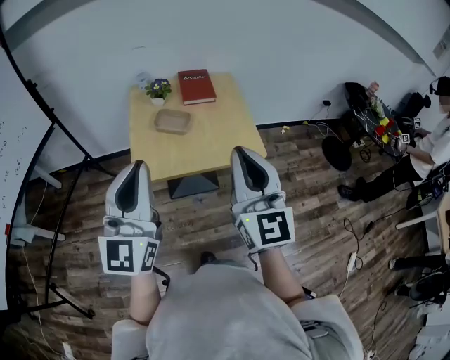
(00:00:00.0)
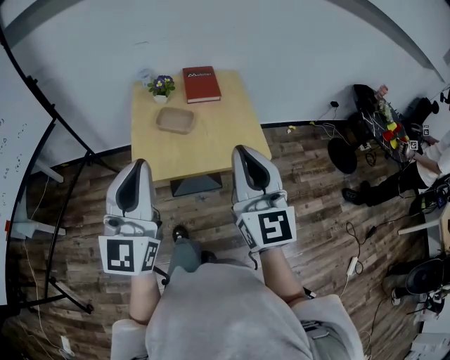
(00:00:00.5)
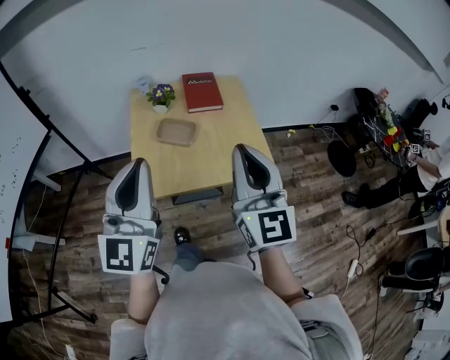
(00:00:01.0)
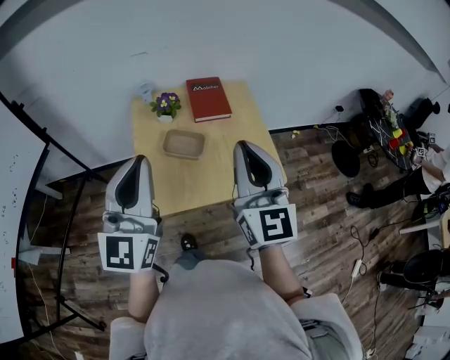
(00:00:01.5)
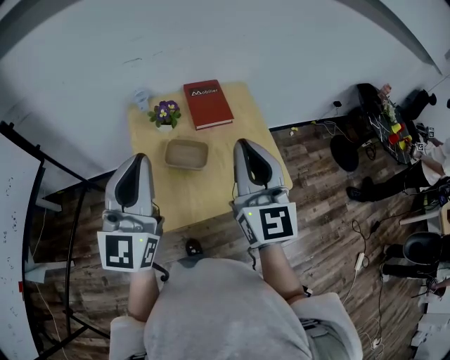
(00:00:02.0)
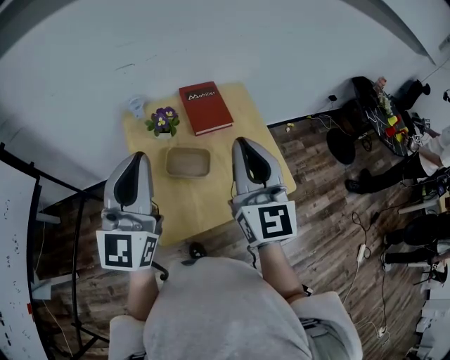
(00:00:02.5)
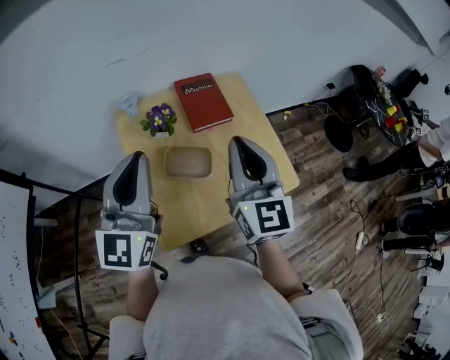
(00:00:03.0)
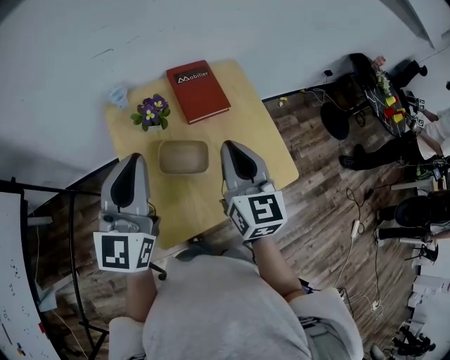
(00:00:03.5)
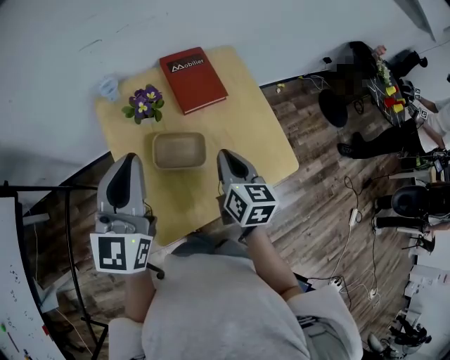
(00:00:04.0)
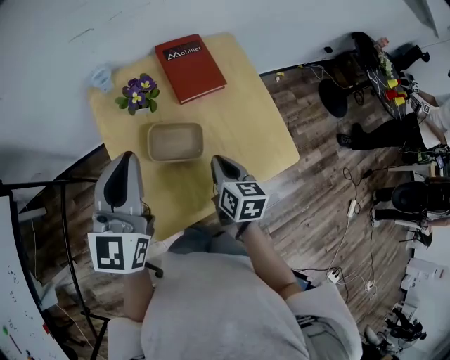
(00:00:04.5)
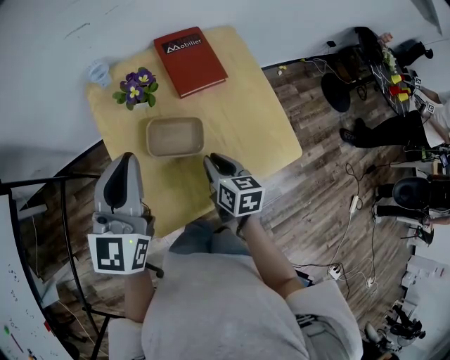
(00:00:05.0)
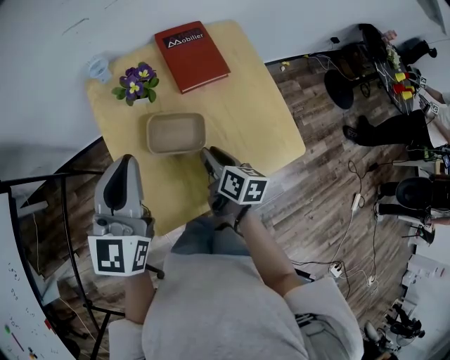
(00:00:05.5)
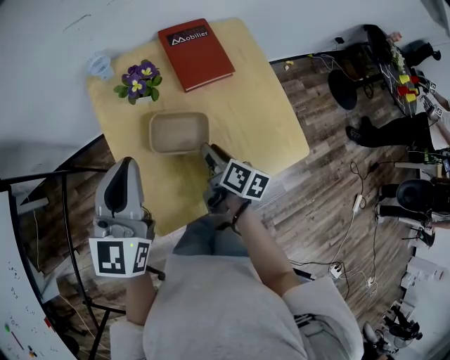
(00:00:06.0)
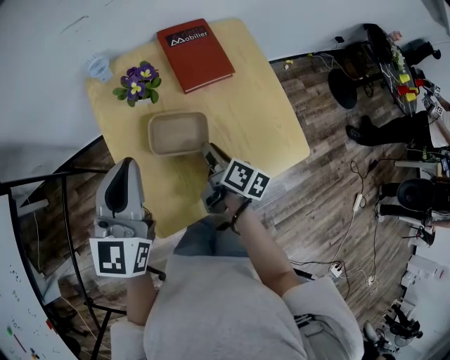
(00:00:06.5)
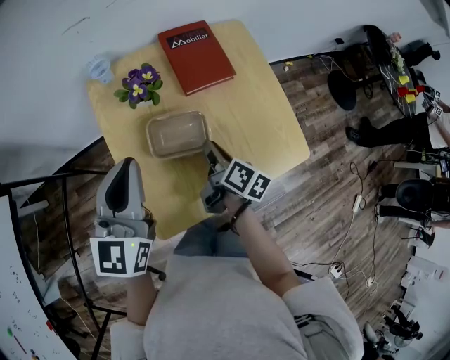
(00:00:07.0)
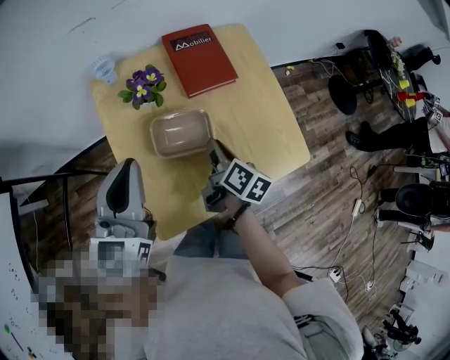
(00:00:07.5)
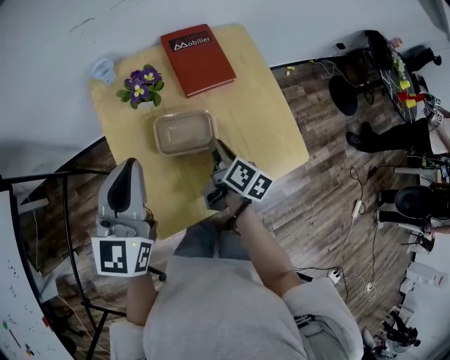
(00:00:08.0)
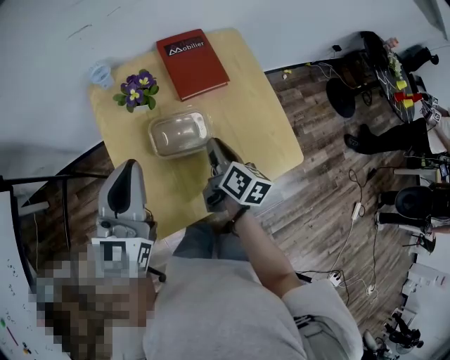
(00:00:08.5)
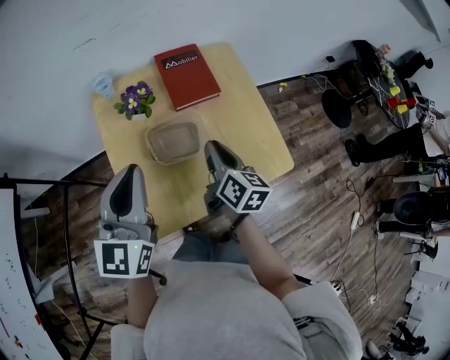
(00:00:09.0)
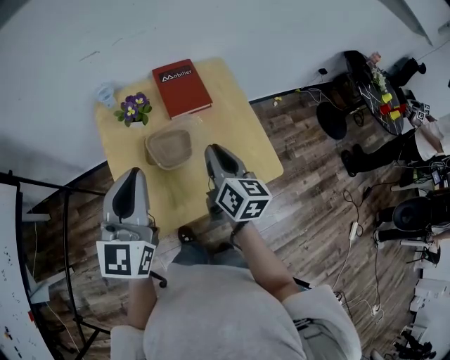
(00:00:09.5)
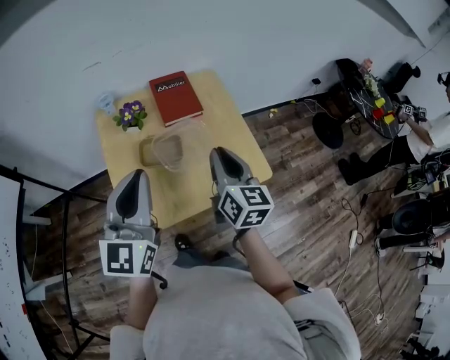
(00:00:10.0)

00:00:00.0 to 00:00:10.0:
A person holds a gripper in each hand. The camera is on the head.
00:00:00.0 to 00:00:02.0: The grippers both shift forward by some 25 cm.
00:00:02.0 to 00:00:04.0: The left gripper travels forward and downward by about 15 cm. Meanwhile the right gripper goes some 25 cm downward, and tips its fingers downward by some 30 degrees.
00:00:04.0 to 00:00:06.0: The right gripper shifts approximately 15 cm downward, turns by roughly 40 degrees, and opens. The left gripper heads downward, covering roughly 5 cm.
00:00:06.0 to 00:00:08.0: The right gripper closes.
00:00:08.0 to 00:00:10.0: The left gripper heads to the right, upward and backward, covering about 15 cm; the right gripper goes approximately 20 cm upward and to the right, and turns by about 40 degrees.

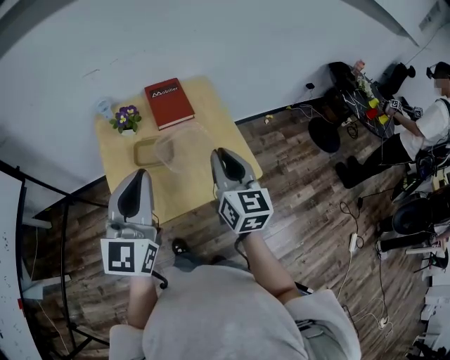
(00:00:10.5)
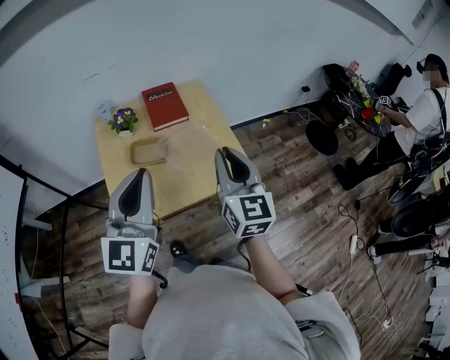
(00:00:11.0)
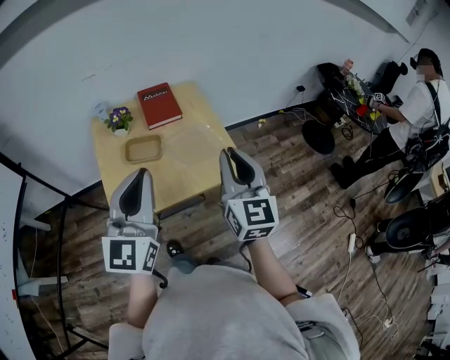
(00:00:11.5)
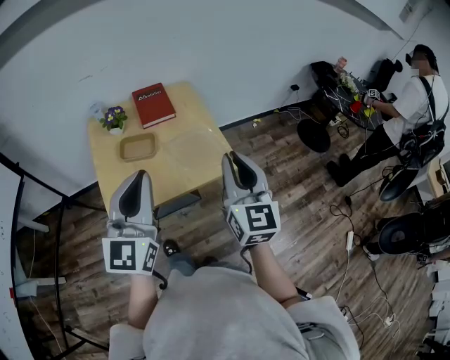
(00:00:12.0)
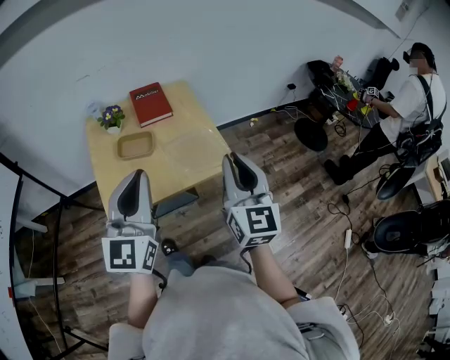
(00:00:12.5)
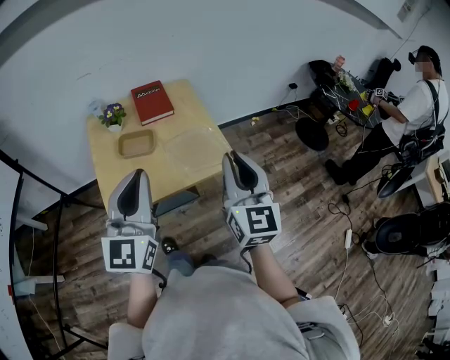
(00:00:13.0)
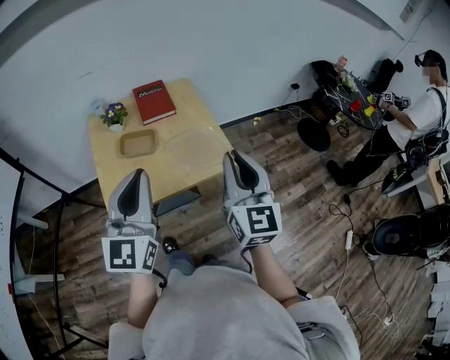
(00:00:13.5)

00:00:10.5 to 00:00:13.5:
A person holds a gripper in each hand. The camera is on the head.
00:00:10.5 to 00:00:12.0: The right gripper is displaced backward, to the right and upward by approximately 15 cm. The left gripper is displaced backward and to the right by roughly 10 cm.
00:00:12.0 to 00:00:13.5: The grippers make only small movements.

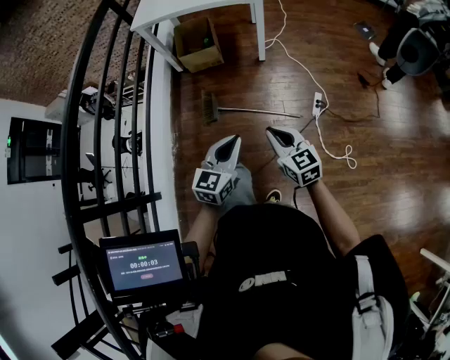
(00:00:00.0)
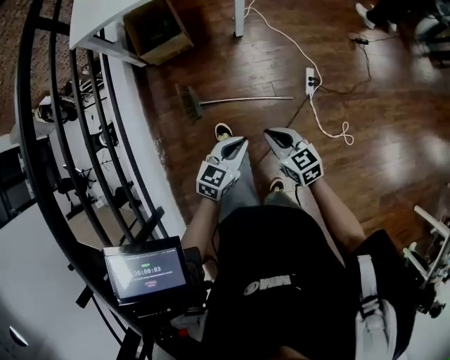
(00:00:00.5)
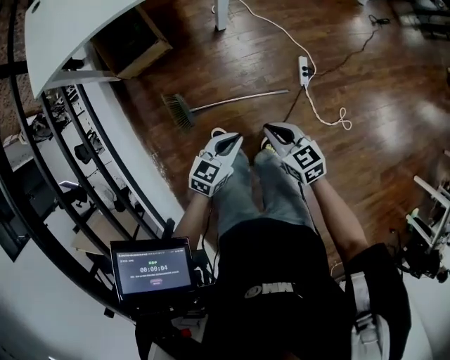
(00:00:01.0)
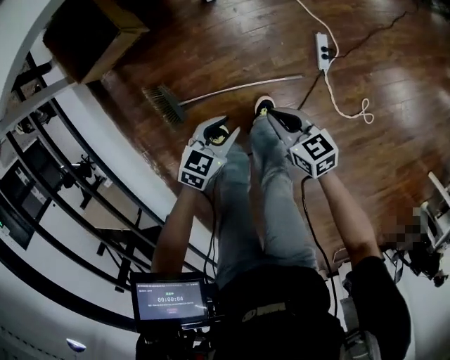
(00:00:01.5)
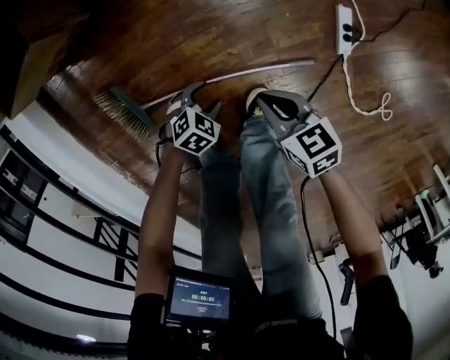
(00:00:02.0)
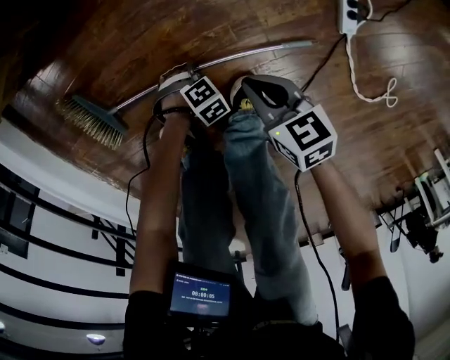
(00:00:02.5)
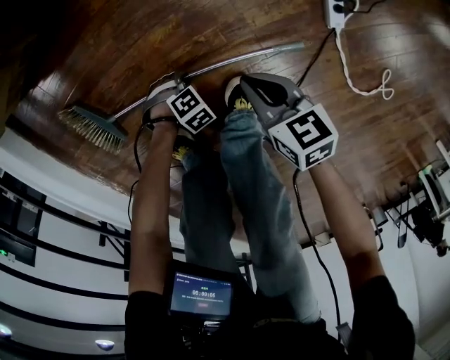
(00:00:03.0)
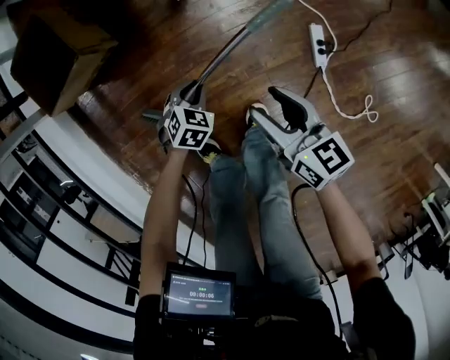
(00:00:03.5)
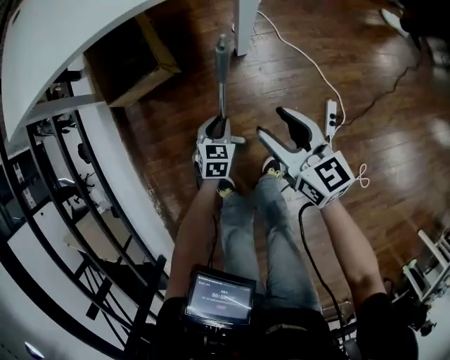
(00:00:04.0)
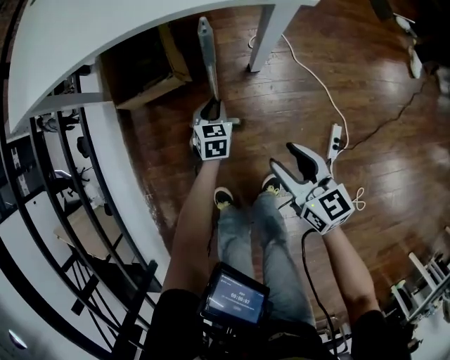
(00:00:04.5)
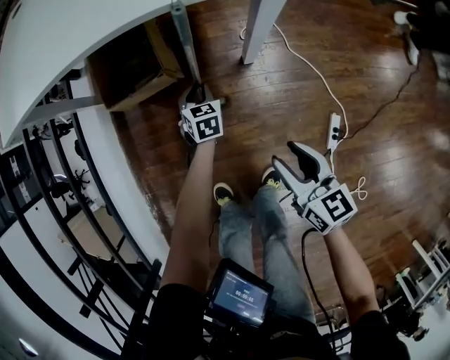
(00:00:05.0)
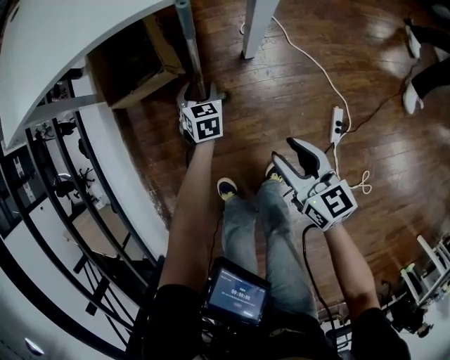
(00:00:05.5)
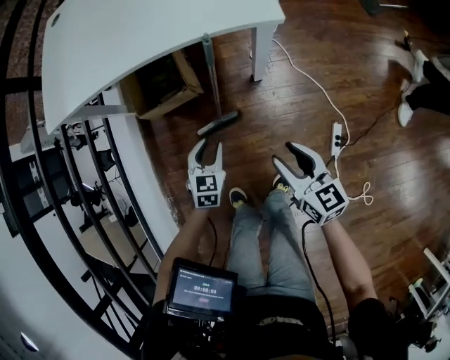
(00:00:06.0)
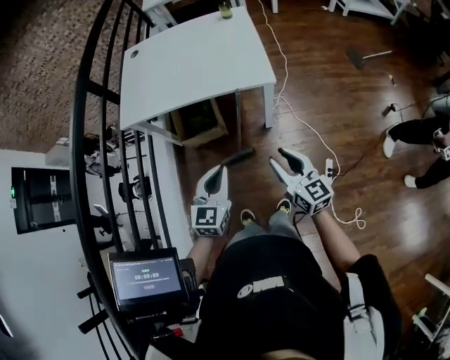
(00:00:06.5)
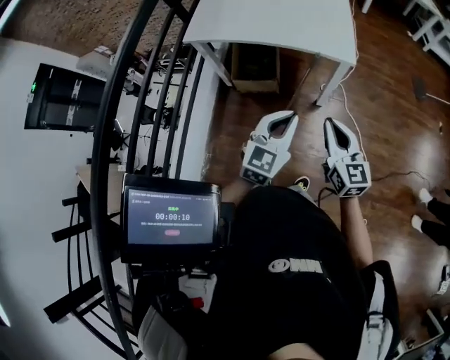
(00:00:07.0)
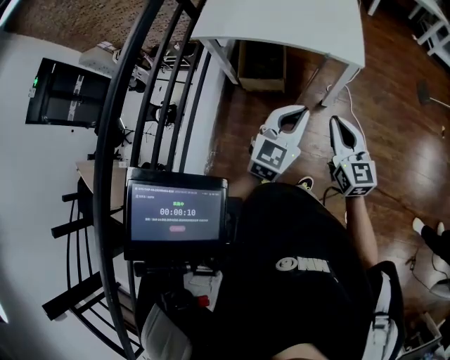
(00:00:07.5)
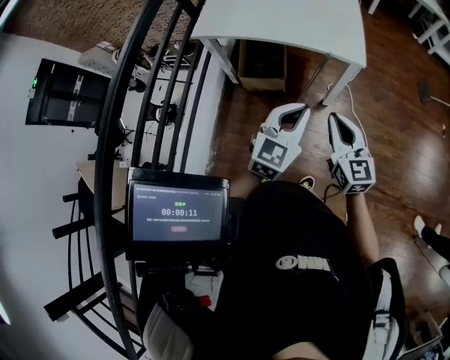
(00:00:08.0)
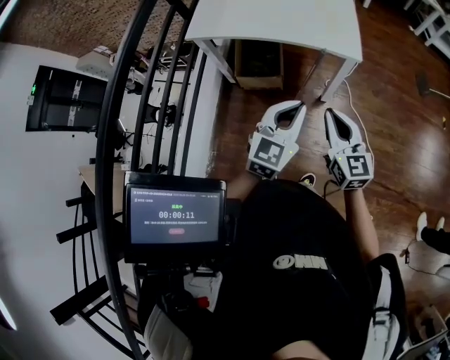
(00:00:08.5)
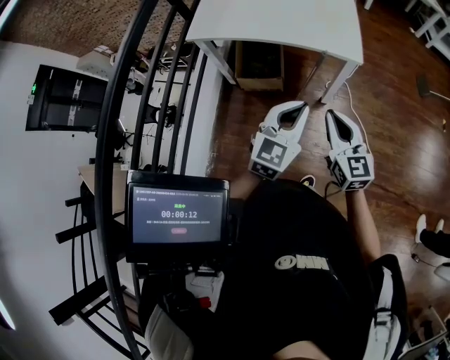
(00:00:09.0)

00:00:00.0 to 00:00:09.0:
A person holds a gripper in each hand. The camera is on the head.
00:00:00.0 to 00:00:02.0: The two grippers go about 60 cm downward. The right gripper changes its angle by roughly 40 degrees, while the left gripper points its fingers some 50 degrees further downward, and opens.
00:00:02.0 to 00:00:04.5: The left gripper ends up about 40 cm from where it was, swivels approximately 60 degrees, and closes up, while the right gripper goes some 30 cm upward, turns by approximately 20 degrees, and opens up.
00:00:04.5 to 00:00:07.0: The left gripper travels upward by about 30 cm, turns by approximately 30 degrees, and opens and closes again. Meanwhile the right gripper heads forward and upward, covering roughly 20 cm, changes its angle by approximately 20 degrees, and closes up.
00:00:07.0 to 00:00:09.0: The grippers move only a little.

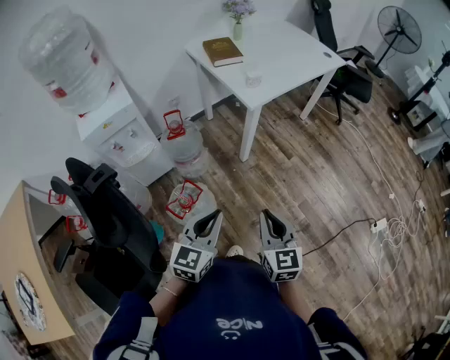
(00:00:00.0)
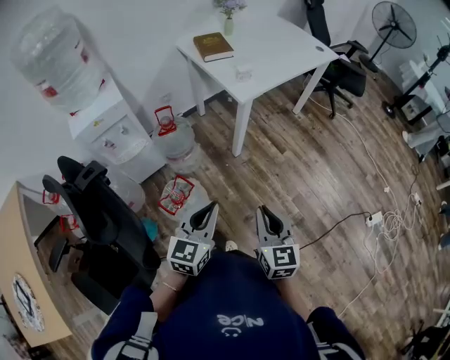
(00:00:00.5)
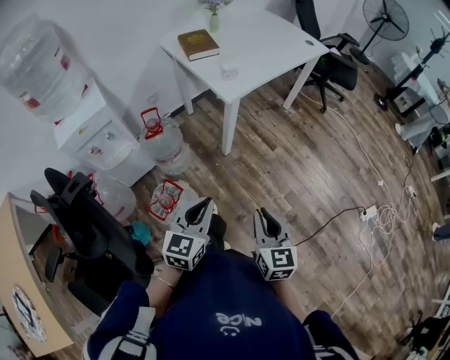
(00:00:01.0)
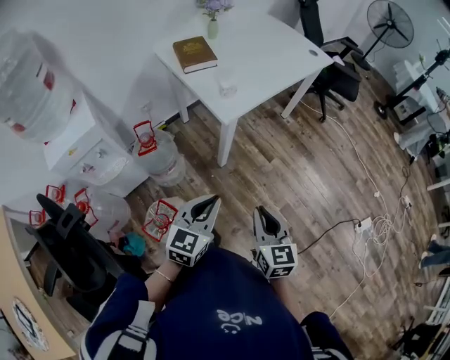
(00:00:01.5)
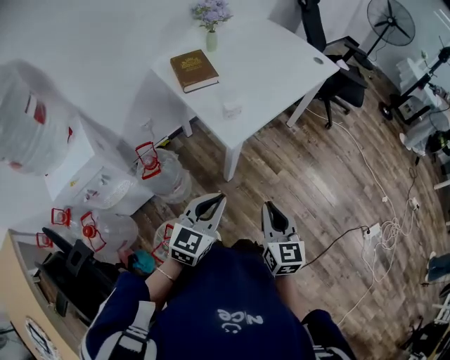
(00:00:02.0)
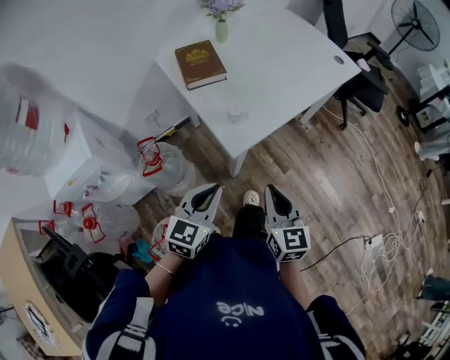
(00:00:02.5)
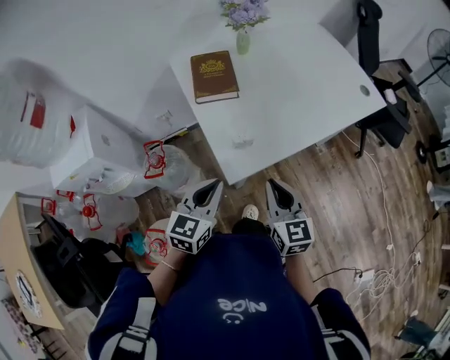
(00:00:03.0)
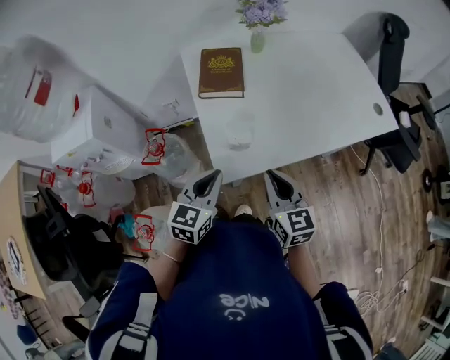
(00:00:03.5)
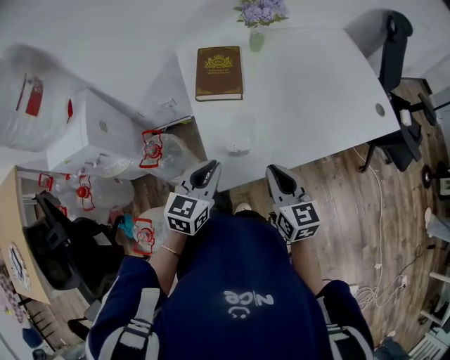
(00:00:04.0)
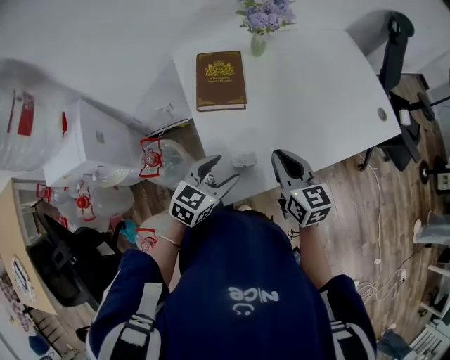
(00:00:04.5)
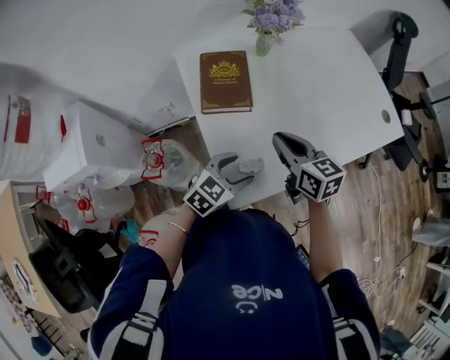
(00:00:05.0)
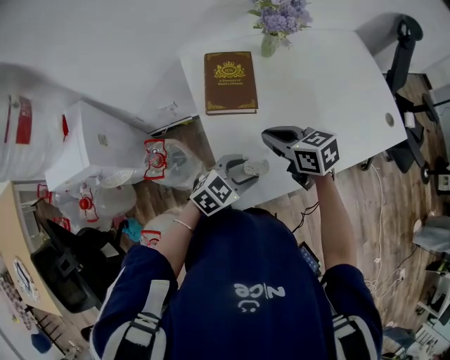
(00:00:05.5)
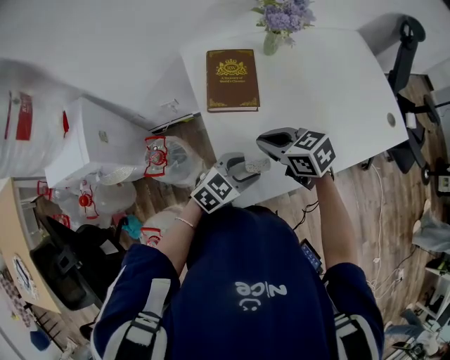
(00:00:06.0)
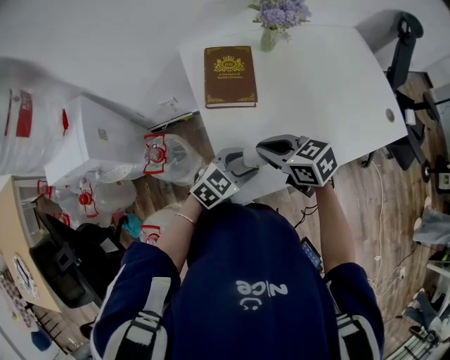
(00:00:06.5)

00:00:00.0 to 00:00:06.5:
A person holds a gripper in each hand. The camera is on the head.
00:00:00.0 to 00:00:02.0: Both grippers move forward, about 30 cm.
00:00:02.0 to 00:00:04.5: The right gripper ends up roughly 40 cm from where it was, and swivels approximately 30 degrees. Meanwhile the left gripper changes place by some 35 cm, and opens up.
00:00:04.5 to 00:00:06.5: The left gripper moves some 5 cm. The right gripper ends up about 10 cm from where it was, and swivels some 40 degrees.
